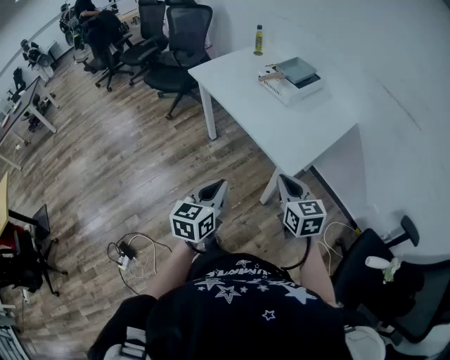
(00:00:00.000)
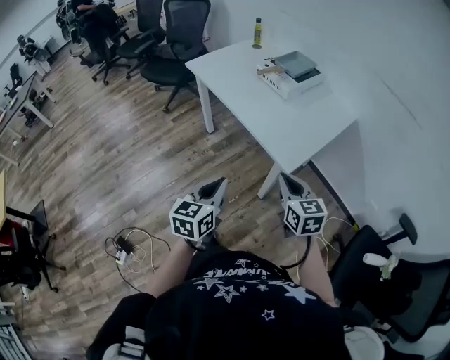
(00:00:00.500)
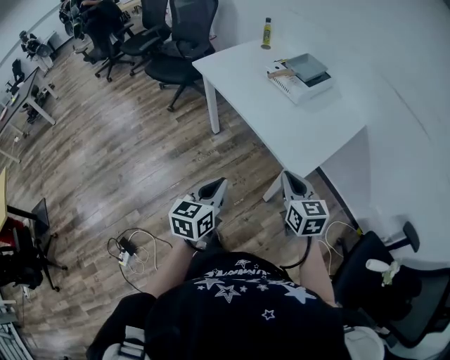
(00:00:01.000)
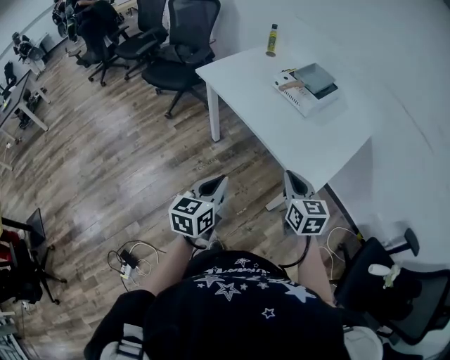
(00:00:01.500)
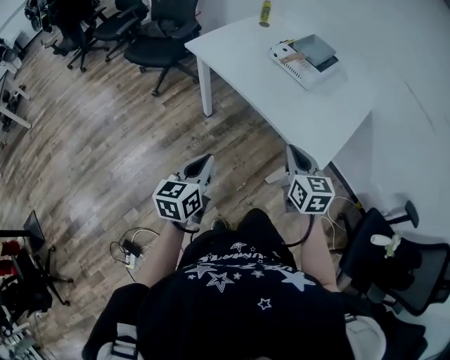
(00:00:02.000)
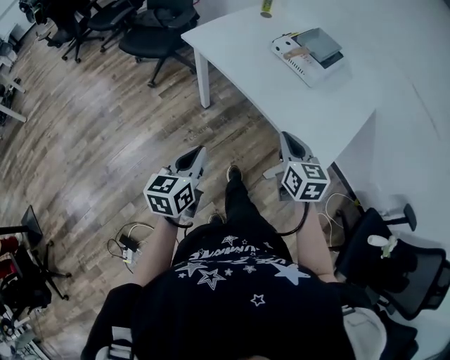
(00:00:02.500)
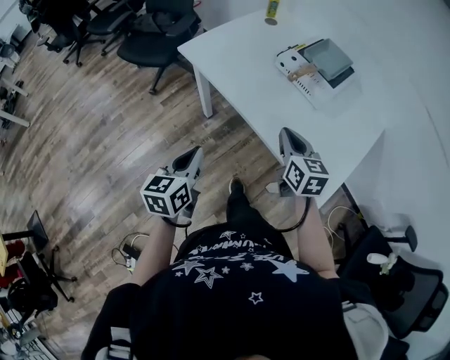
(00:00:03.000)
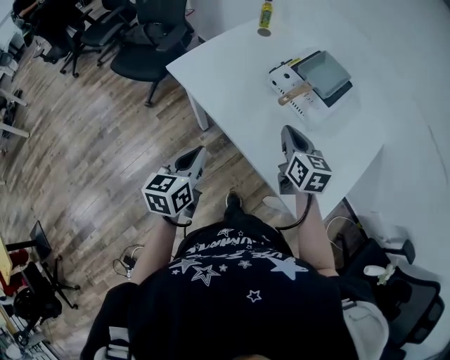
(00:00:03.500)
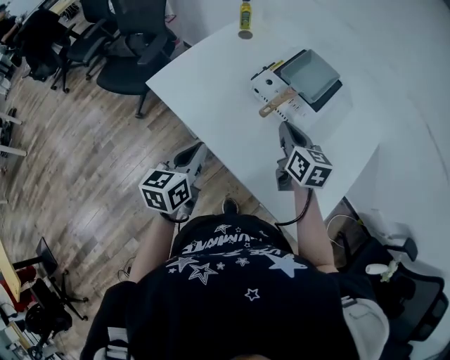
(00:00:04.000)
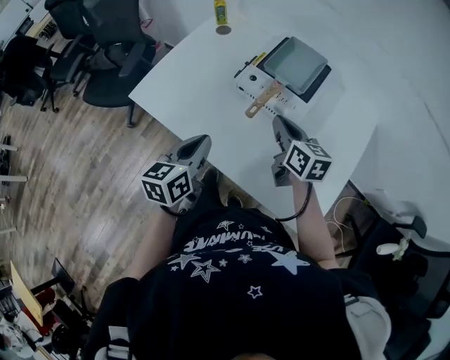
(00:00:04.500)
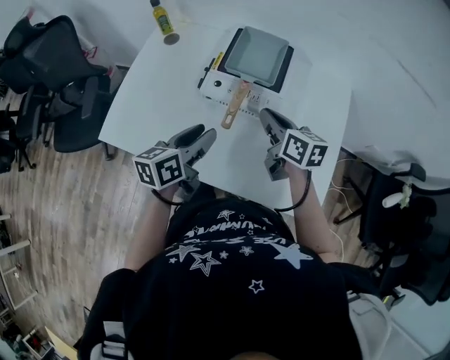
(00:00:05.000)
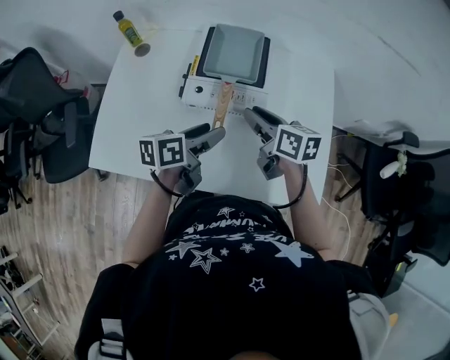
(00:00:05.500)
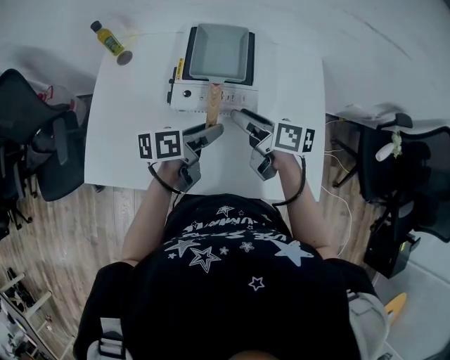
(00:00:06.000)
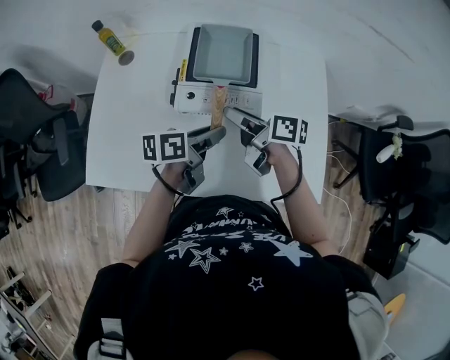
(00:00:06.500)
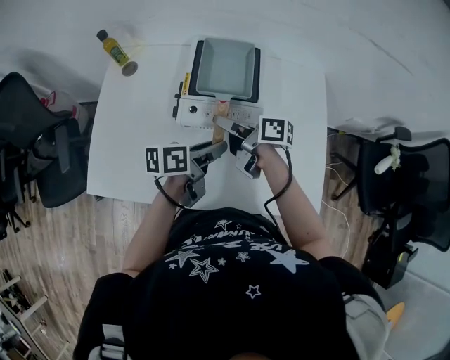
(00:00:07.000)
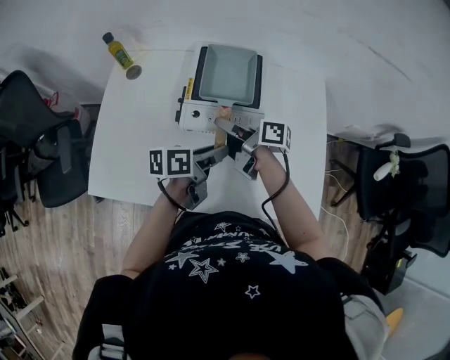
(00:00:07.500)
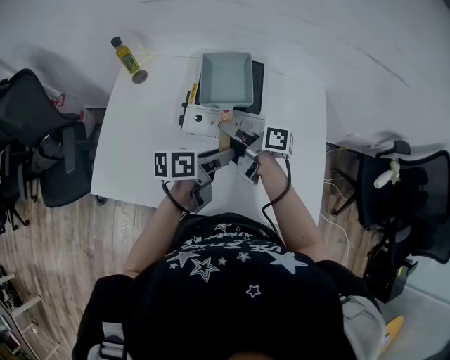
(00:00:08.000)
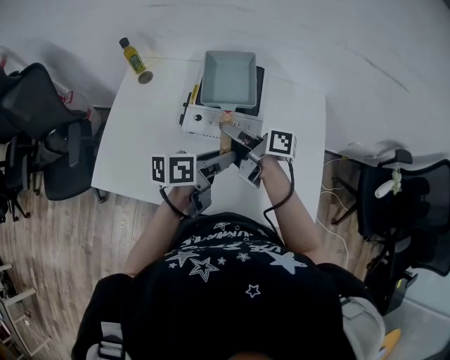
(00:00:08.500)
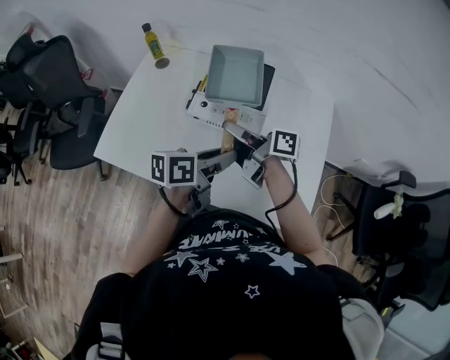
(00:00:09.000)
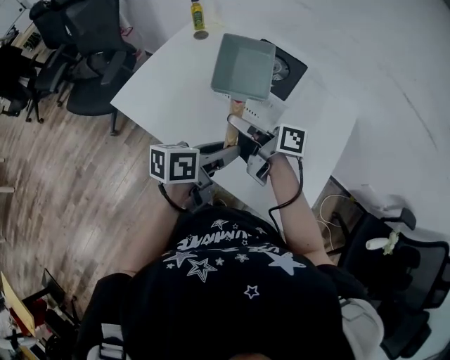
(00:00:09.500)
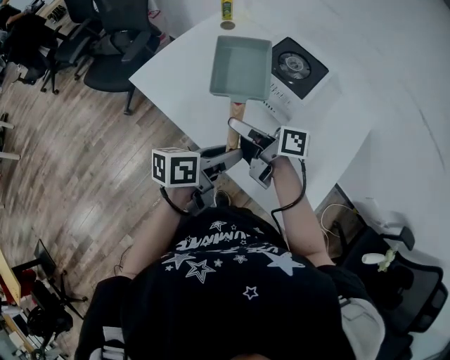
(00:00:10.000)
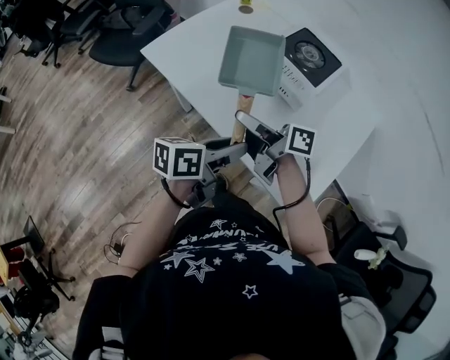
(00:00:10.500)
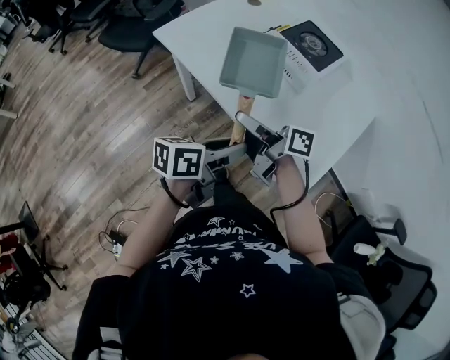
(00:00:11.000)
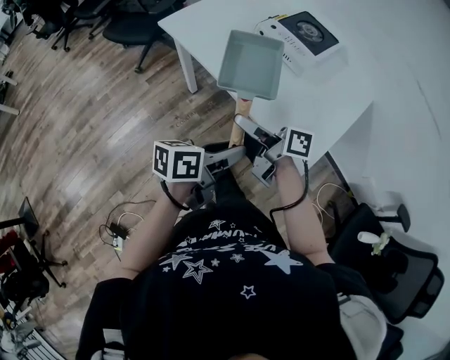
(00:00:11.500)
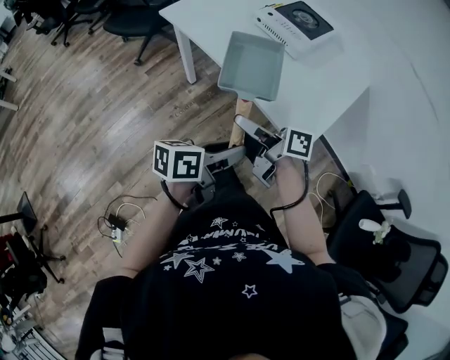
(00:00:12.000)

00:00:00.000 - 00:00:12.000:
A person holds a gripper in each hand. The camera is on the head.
00:00:00.000 - 00:00:02.000: The two grippers go some 20 cm to the left and forward.
00:00:02.000 - 00:00:04.000: Both grippers move forward, roughly 35 cm.
00:00:04.000 - 00:00:06.000: The right gripper moves approximately 10 cm, turns by some 40 degrees, and opens its fingers. The left gripper ends up about 25 cm from where it was, turns by roughly 60 degrees, and opens its fingers.
00:00:06.000 - 00:00:08.000: The right gripper travels to the left by some 5 cm, and rotates approximately 20 degrees.
00:00:08.000 - 00:00:10.000: The right gripper ends up some 20 cm from where it was, and rotates some 40 degrees; the left gripper changes place by roughly 20 cm, and turns by some 30 degrees.
00:00:10.000 - 00:00:12.000: Both grippers move backward, about 30 cm.

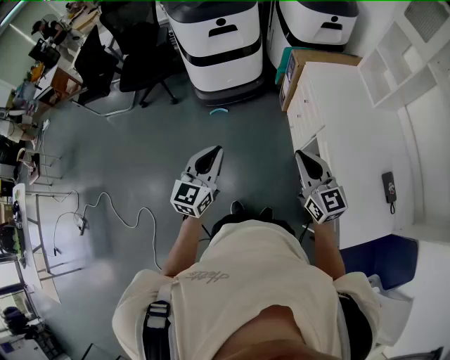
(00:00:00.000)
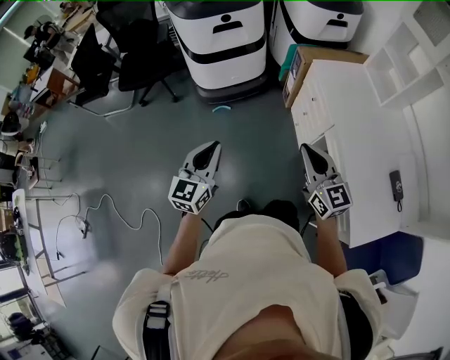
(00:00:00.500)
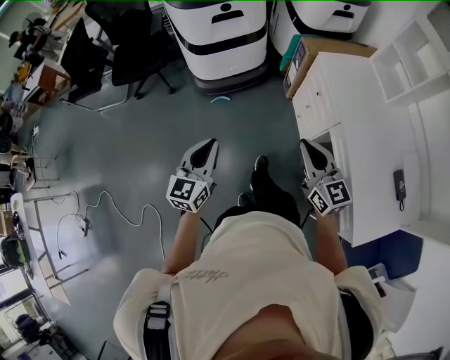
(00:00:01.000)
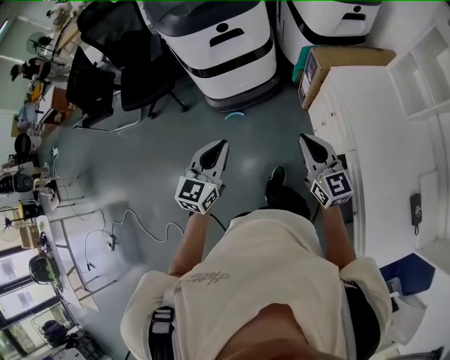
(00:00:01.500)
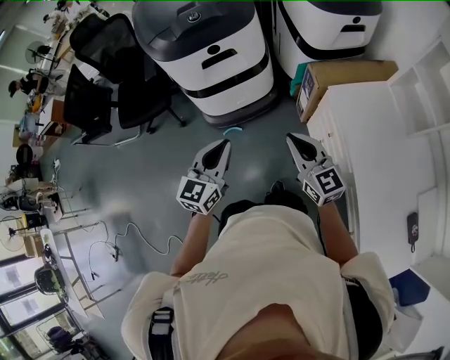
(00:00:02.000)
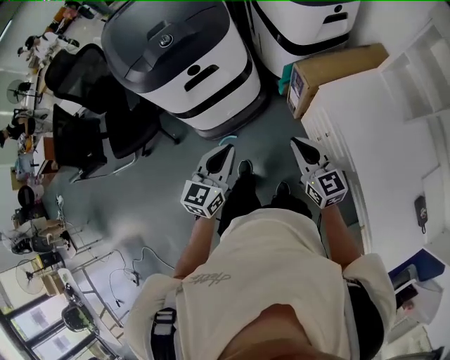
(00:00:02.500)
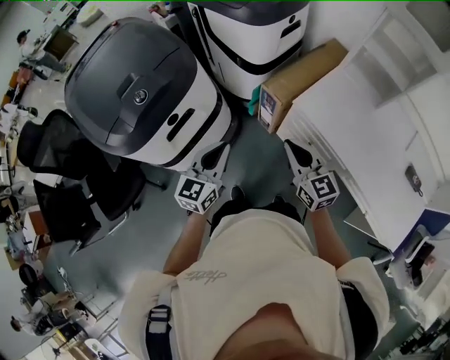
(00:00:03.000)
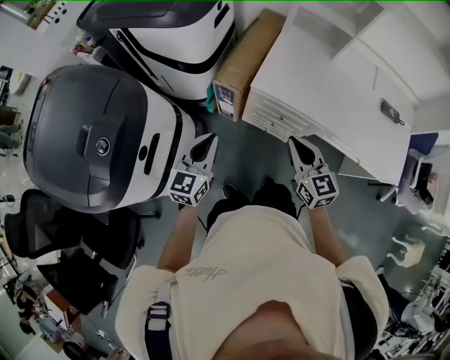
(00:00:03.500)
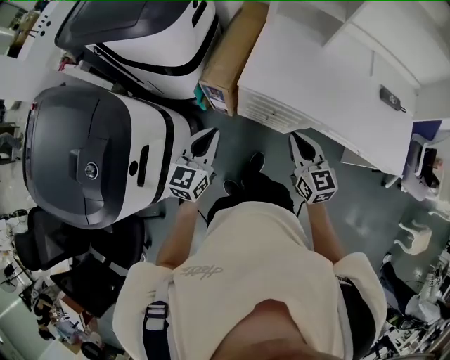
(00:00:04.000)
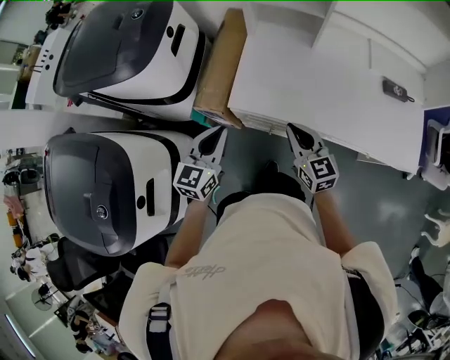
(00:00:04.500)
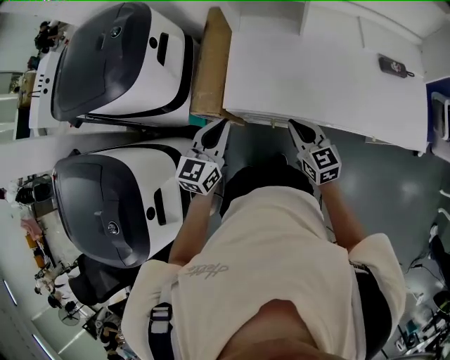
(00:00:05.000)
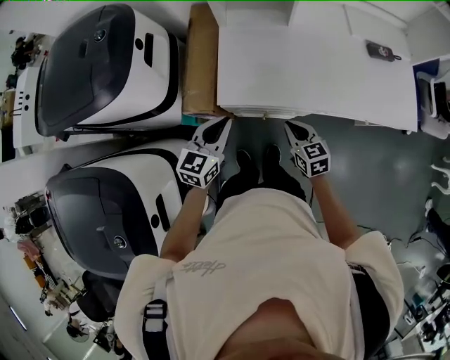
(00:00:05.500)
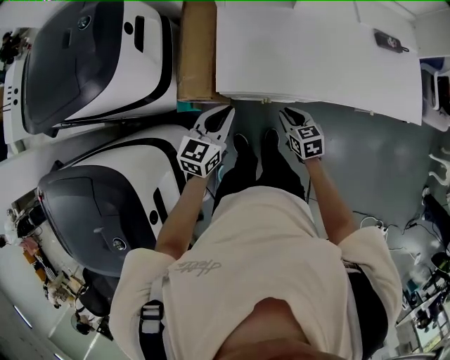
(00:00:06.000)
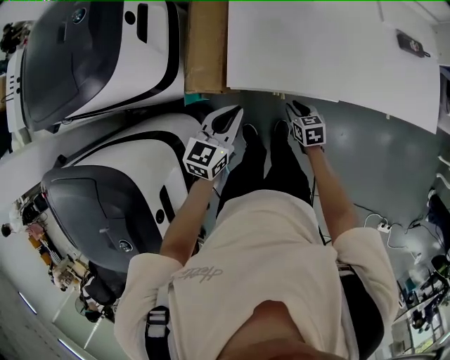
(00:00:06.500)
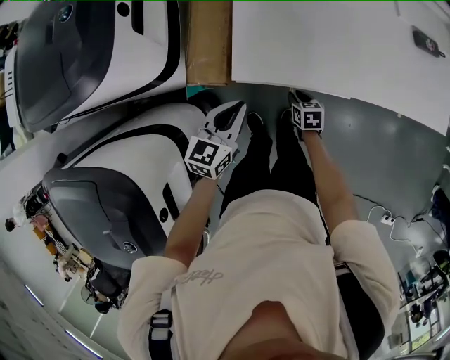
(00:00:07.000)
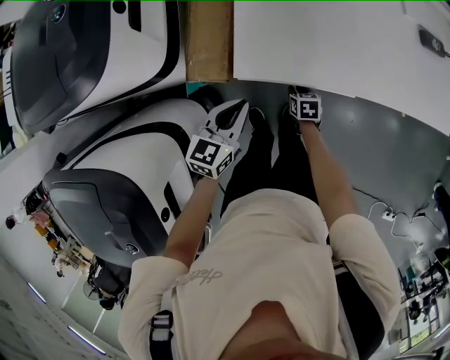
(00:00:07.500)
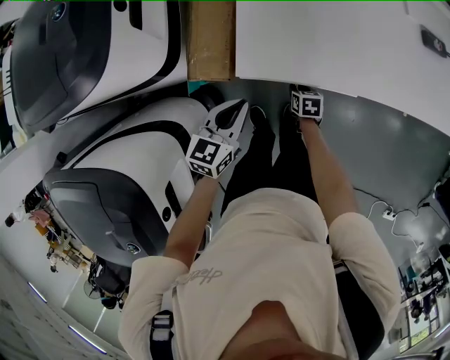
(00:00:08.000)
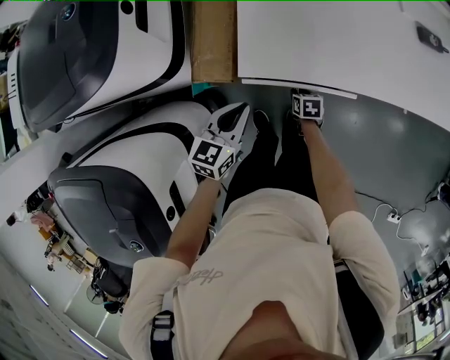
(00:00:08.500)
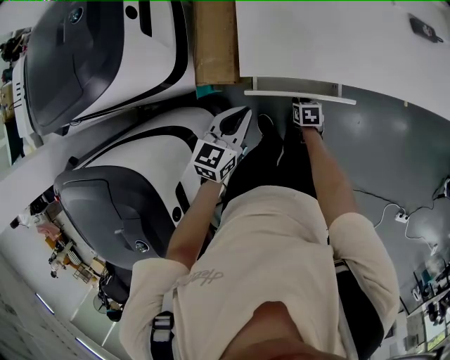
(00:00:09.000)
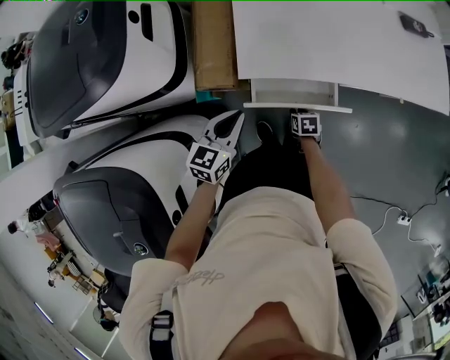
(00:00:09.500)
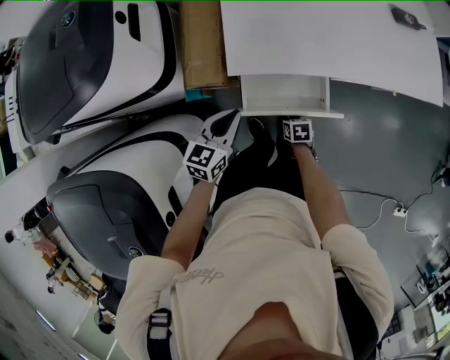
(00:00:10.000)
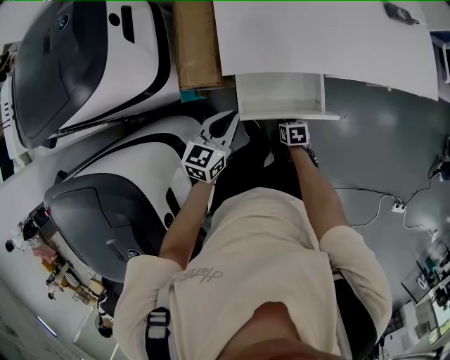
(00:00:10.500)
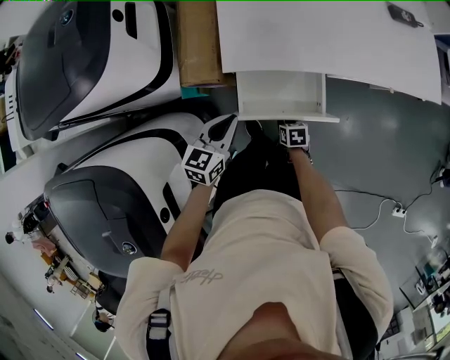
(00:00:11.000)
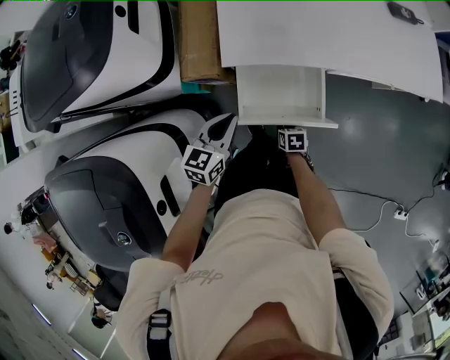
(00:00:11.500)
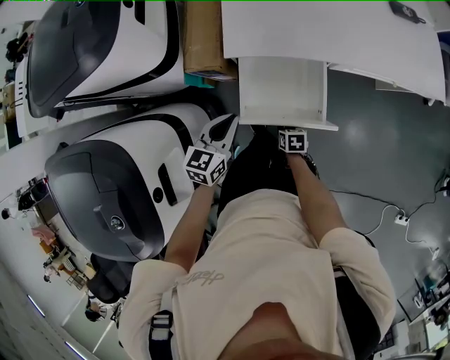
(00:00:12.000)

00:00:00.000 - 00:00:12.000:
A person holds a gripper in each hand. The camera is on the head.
00:00:00.000 - 00:00:02.000: The grippers both shift forward by some 35 cm.
00:00:02.000 - 00:00:04.000: The right gripper ends up some 15 cm from where it was, and rotates approximately 70 degrees. The left gripper shifts by approximately 30 cm, and swivels some 60 degrees.
00:00:04.000 - 00:00:06.000: The right gripper goes approximately 20 cm downward and forward, and turns by approximately 30 degrees. Meanwhile the left gripper is displaced forward, to the right and downward by some 20 cm, and rotates some 30 degrees.
00:00:06.000 - 00:00:08.000: The left gripper heads downward, covering about 5 cm. Meanwhile the right gripper is displaced downward by roughly 20 cm, and rotates about 30 degrees.
00:00:08.000 - 00:00:10.000: The left gripper goes about 5 cm backward. Meanwhile the right gripper is displaced backward by roughly 15 cm.
00:00:10.000 - 00:00:12.000: Both grippers travel together backward, roughly 10 cm.

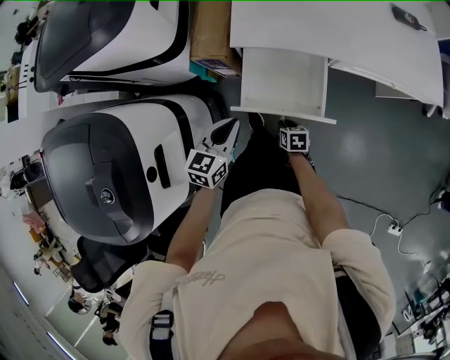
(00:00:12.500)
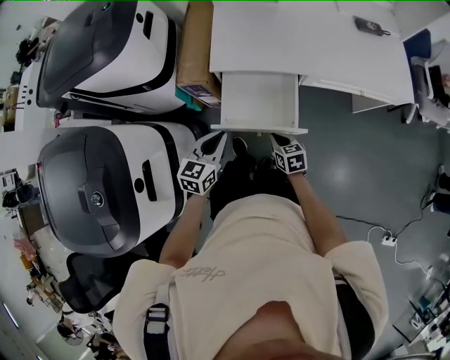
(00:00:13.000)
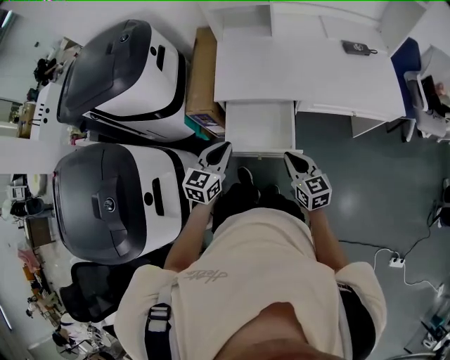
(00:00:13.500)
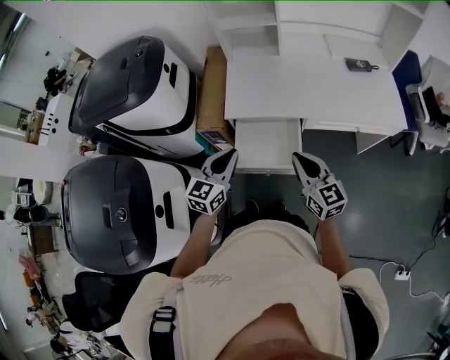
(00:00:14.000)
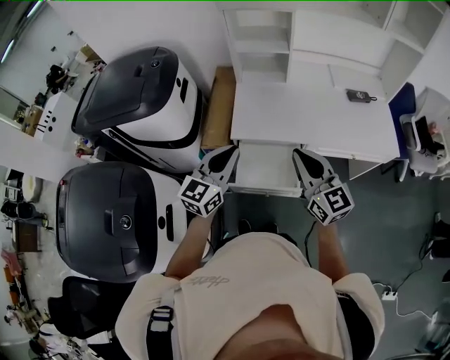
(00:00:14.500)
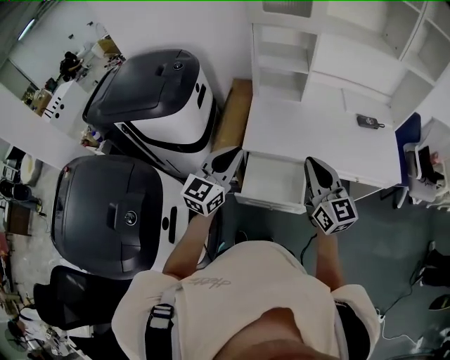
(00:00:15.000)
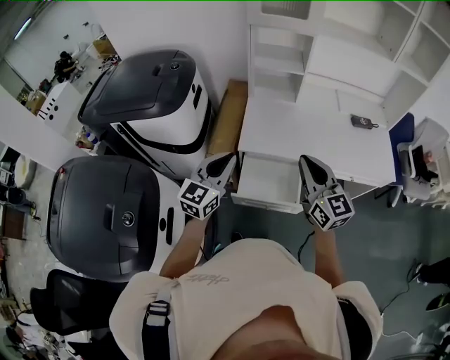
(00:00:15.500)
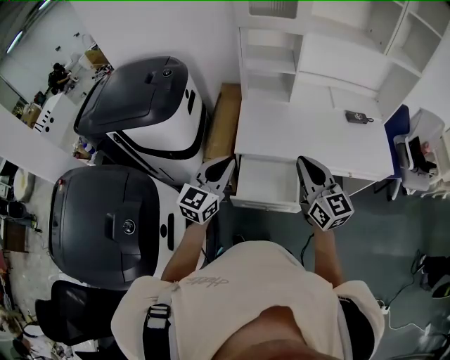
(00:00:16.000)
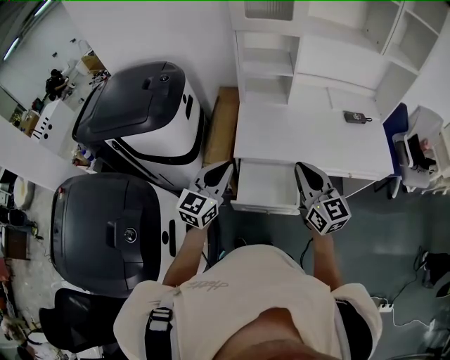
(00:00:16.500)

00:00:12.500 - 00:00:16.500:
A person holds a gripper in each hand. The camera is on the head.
00:00:12.500 - 00:00:14.500: The right gripper is displaced upward by roughly 50 cm, tilts its fingers about 60 degrees upward, and closes up; the left gripper moves upward, approximately 25 cm, and turns by approximately 30 degrees.
00:00:14.500 - 00:00:16.500: The left gripper heads to the left, covering some 5 cm.
